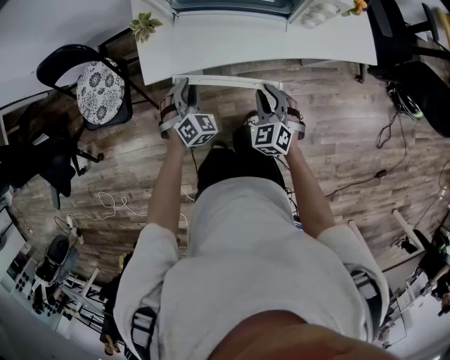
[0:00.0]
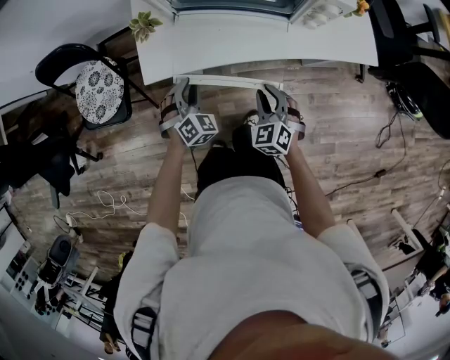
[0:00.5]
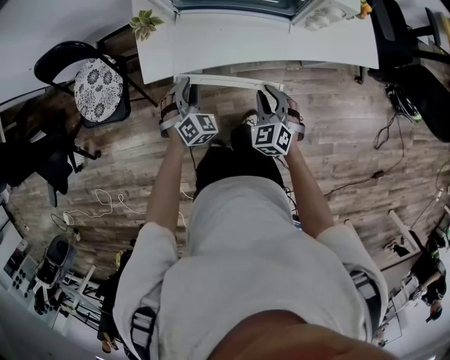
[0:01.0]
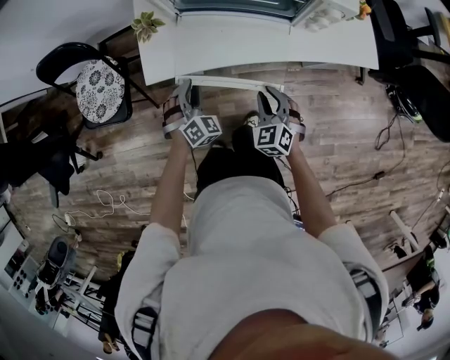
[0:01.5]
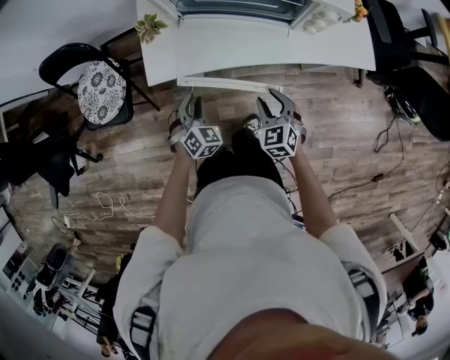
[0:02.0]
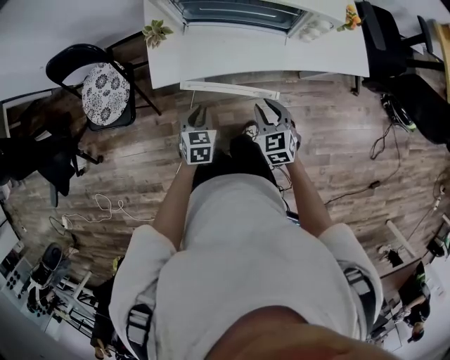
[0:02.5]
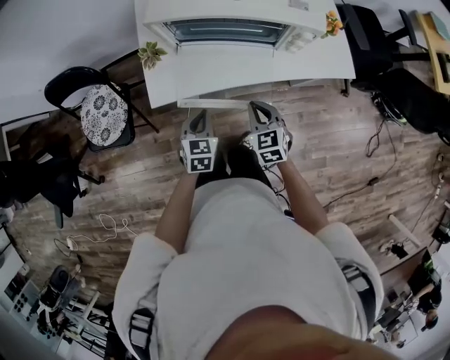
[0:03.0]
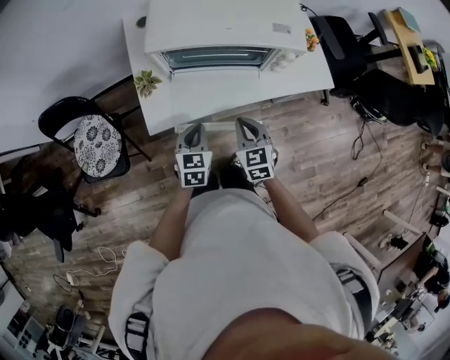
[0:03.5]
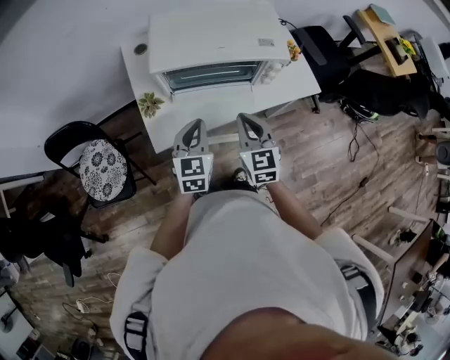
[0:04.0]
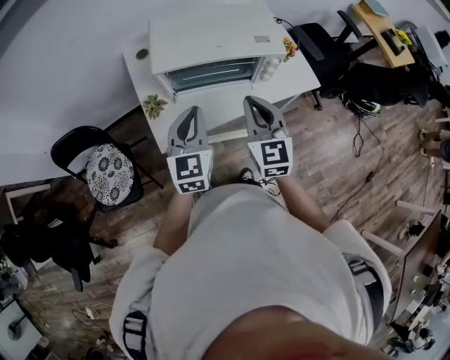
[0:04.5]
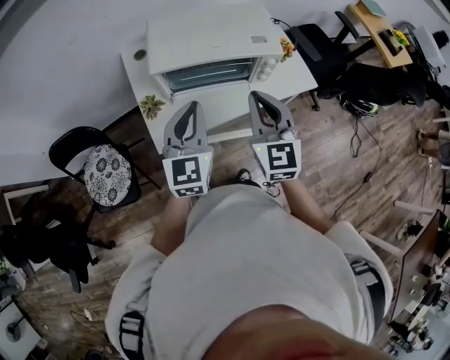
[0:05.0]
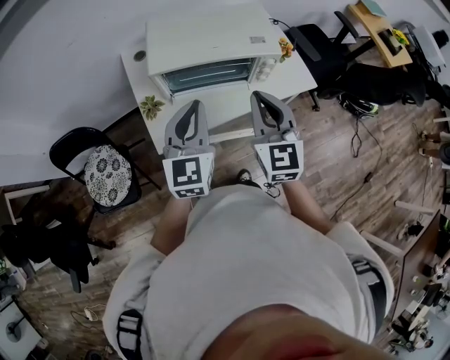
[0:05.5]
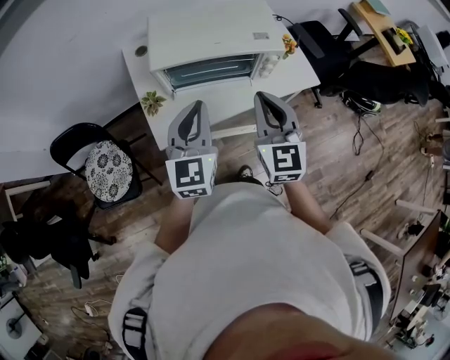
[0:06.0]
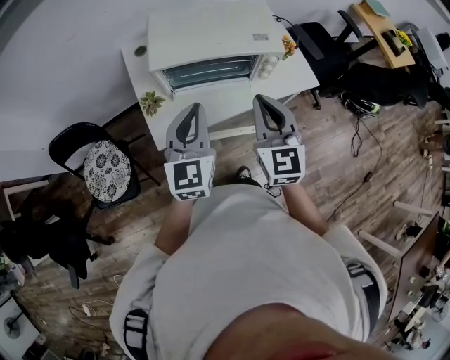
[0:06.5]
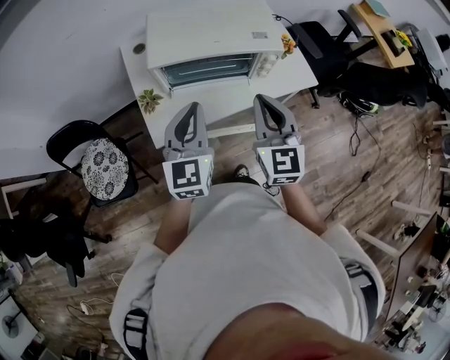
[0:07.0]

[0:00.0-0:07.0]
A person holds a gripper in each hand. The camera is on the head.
0:00.0 to 0:02.0: There are only small adjustments of the grippers.
0:02.0 to 0:03.5: Both grippers travel together upward, approximately 10 cm. The left gripper changes its angle by roughly 40 degrees, and closes up; the right gripper swivels about 20 degrees, and closes.
0:03.5 to 0:05.0: Both grippers move upward, some 25 cm. The left gripper rotates some 30 degrees, while the right gripper turns by roughly 30 degrees.
0:05.0 to 0:07.0: The grippers make only small movements.

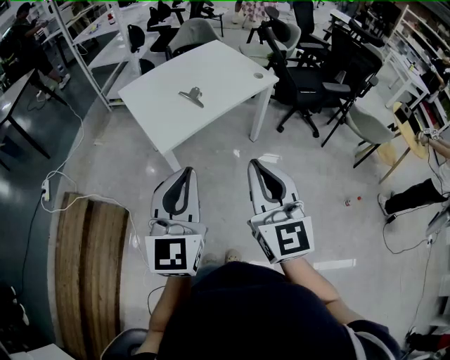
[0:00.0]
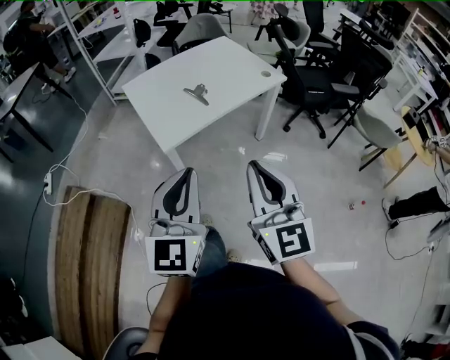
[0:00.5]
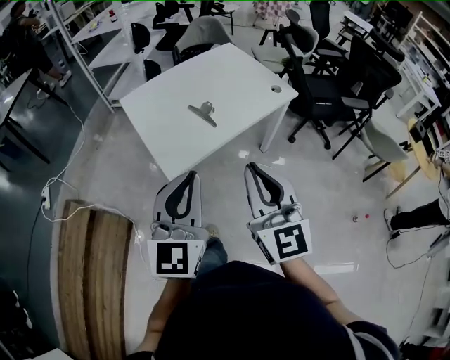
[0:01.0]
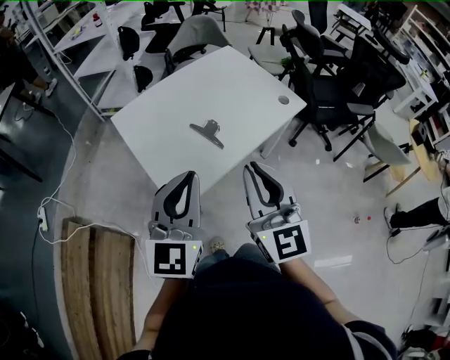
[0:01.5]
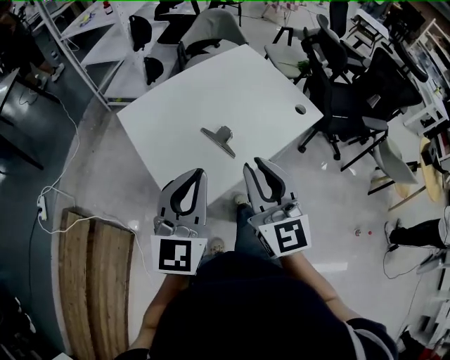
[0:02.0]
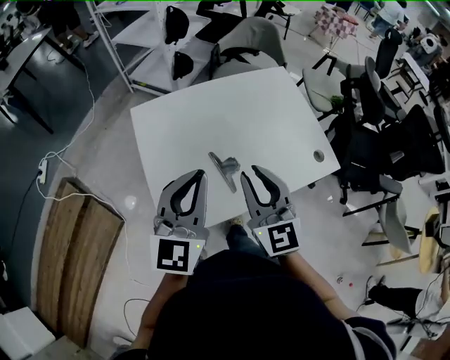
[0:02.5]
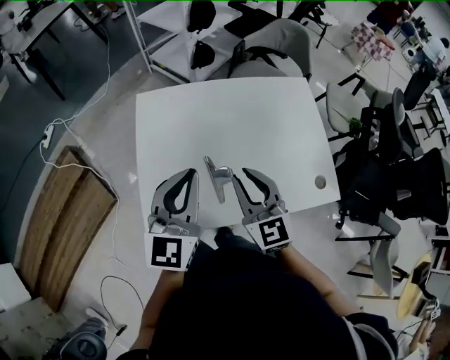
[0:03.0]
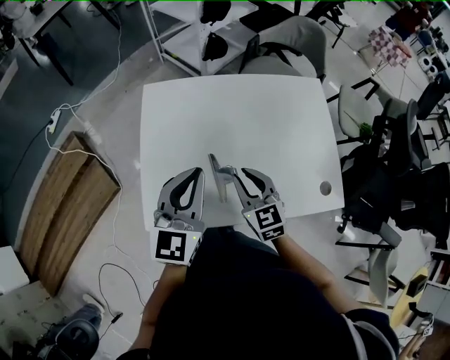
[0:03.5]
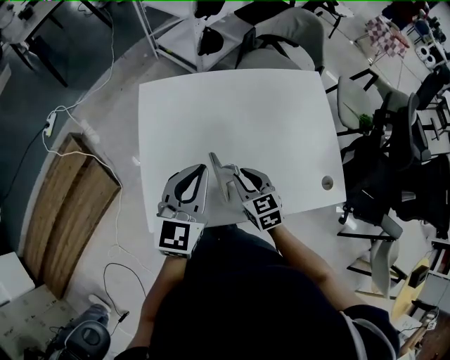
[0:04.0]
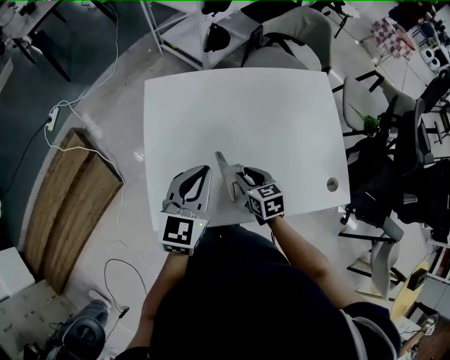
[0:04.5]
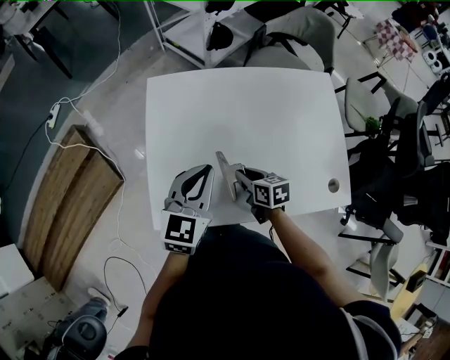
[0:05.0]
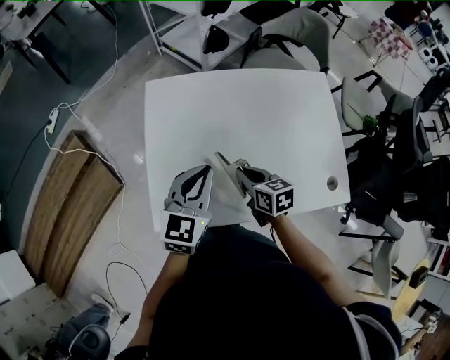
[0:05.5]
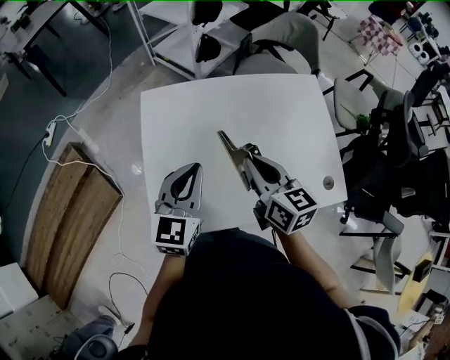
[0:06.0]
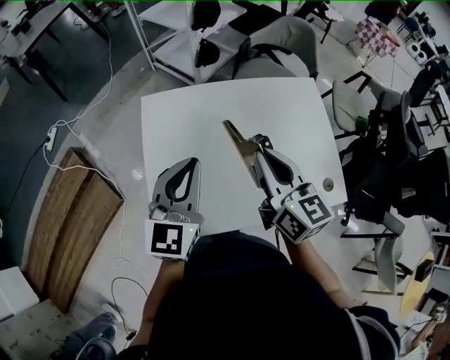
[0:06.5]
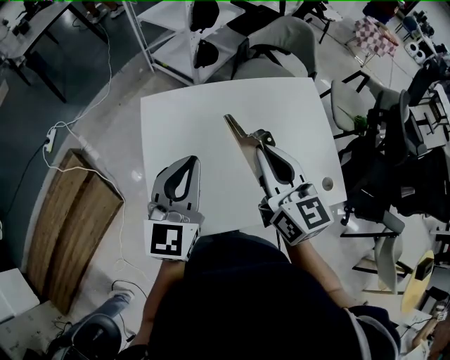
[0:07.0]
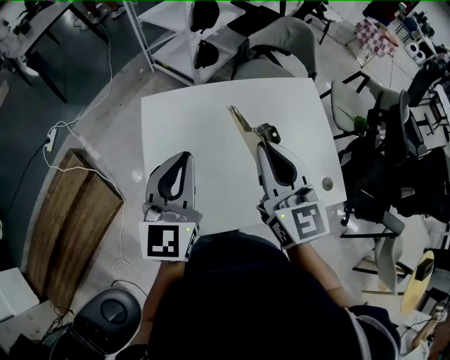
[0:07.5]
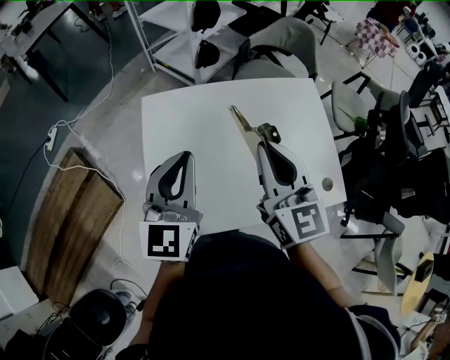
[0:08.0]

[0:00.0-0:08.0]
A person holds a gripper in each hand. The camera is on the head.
0:00.0 to 0:02.0: Both grippers travel together forward, roughly 35 cm.
0:02.0 to 0:04.0: The right gripper shifts approximately 25 cm downward, and angles its fingers downward, by roughly 30 degrees, while the left gripper shifts by about 20 cm, and rotates approximately 30 degrees.
0:04.0 to 0:06.0: The right gripper moves upward, roughly 15 cm, and swivels some 30 degrees.
0:06.0 to 0:08.0: The two grippers go approximately 10 cm upward. The right gripper changes its angle by about 30 degrees.

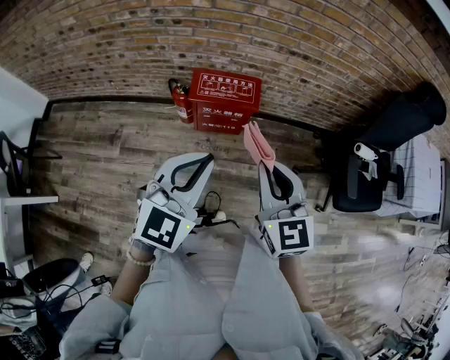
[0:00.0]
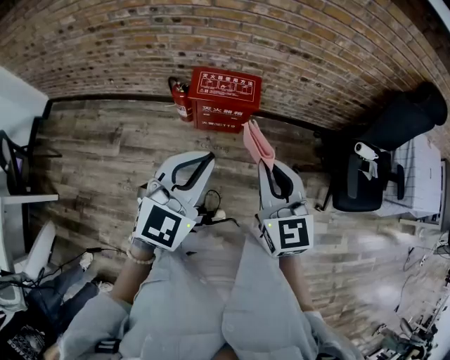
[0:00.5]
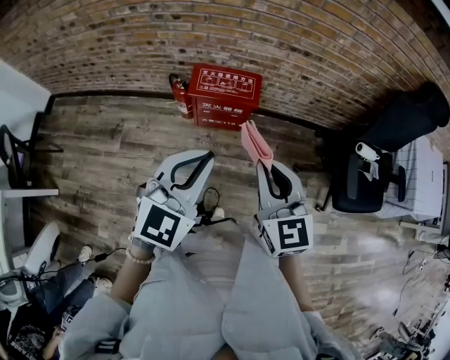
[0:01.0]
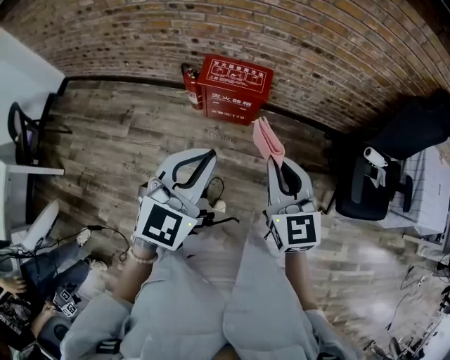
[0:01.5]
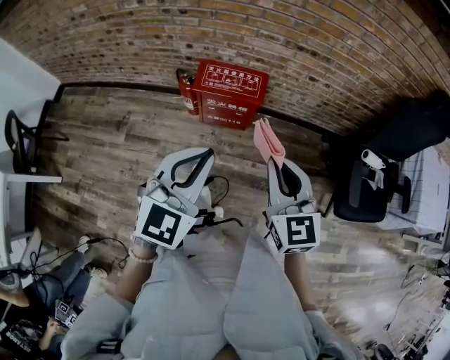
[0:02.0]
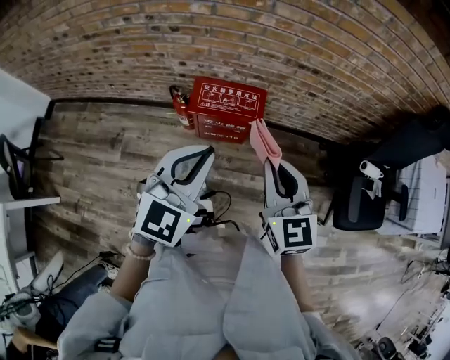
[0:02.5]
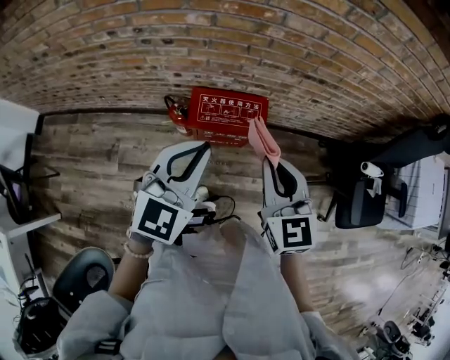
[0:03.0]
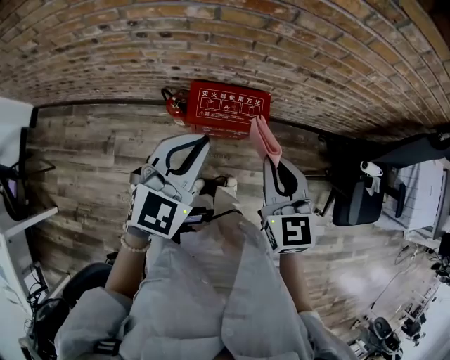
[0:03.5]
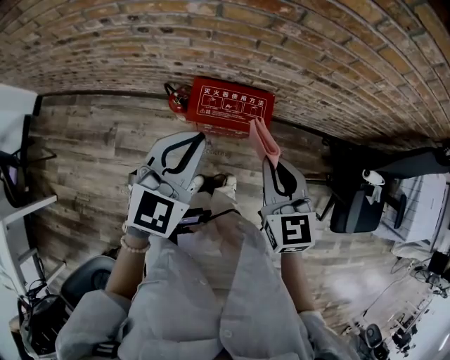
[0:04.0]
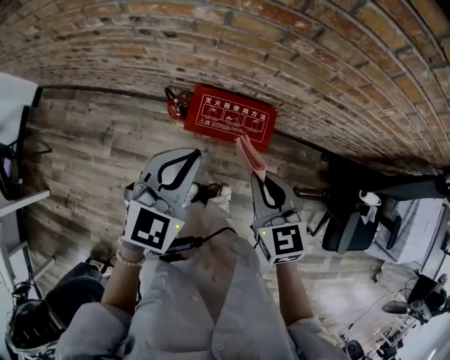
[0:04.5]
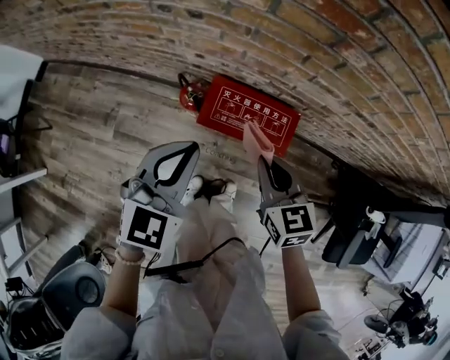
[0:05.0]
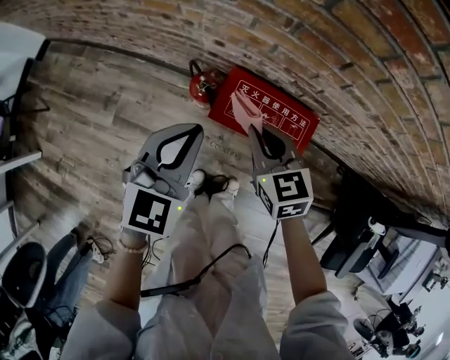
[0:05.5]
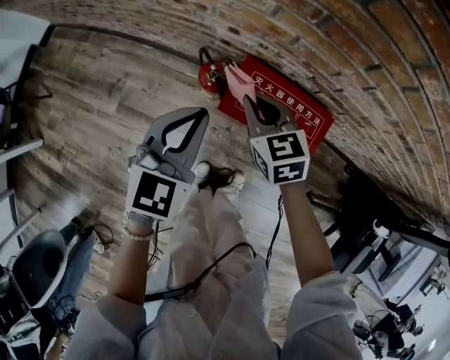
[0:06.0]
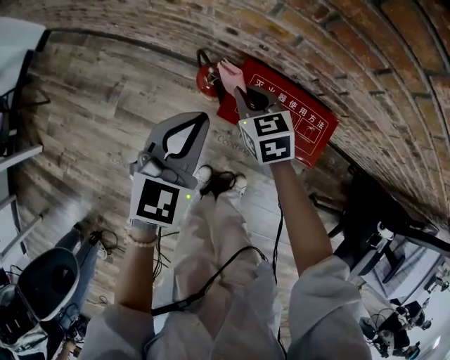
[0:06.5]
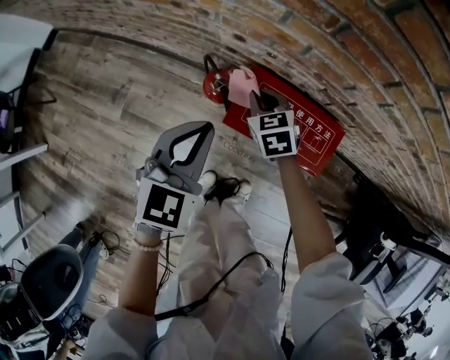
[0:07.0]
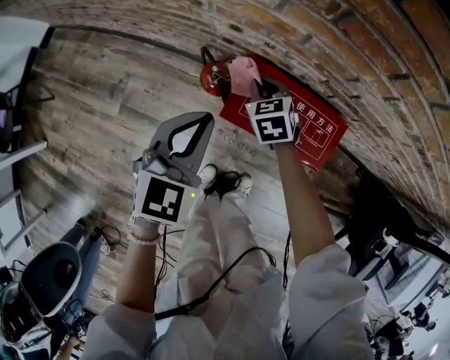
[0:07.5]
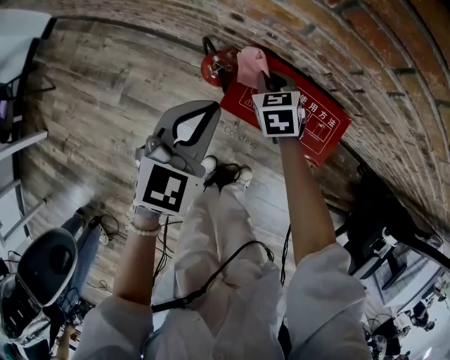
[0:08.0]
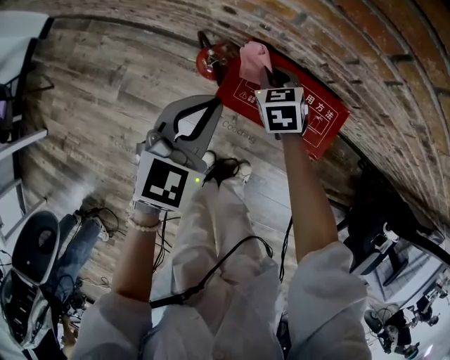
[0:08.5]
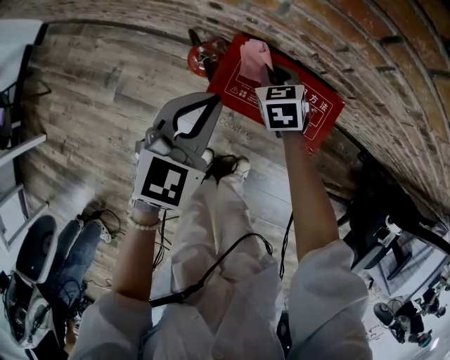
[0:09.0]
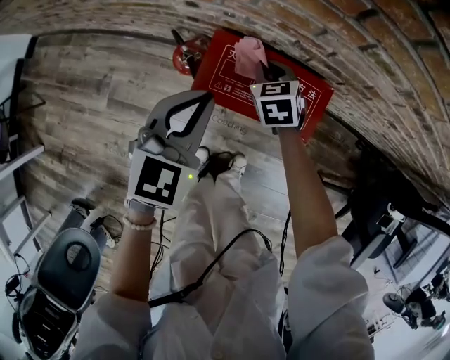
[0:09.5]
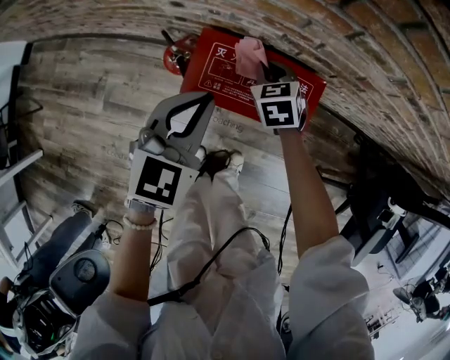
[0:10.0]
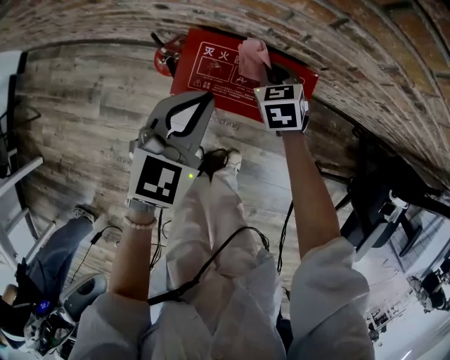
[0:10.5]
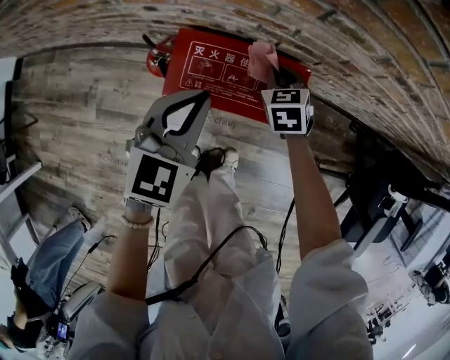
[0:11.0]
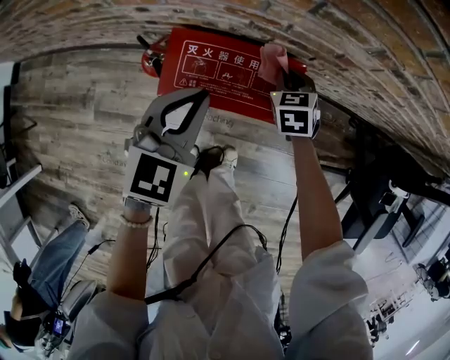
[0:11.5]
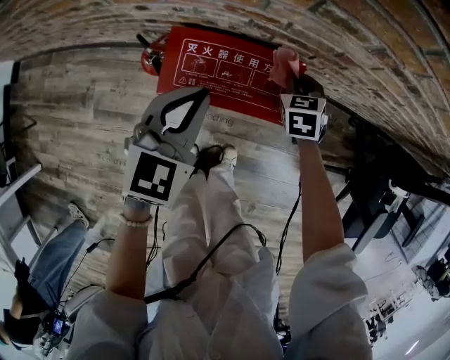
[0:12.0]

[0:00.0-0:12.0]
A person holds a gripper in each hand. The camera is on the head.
0:00.0 to 0:02.0: The right gripper shifts about 5 cm to the right.
0:02.0 to 0:04.0: Both grippers travel together forward and to the left, some 30 cm.
0:04.0 to 0:06.0: The right gripper heads downward, forward and to the left, covering some 35 cm, and changes its angle by about 30 degrees. Meanwhile the left gripper is displaced downward, to the left and forward by approximately 25 cm, and turns by approximately 20 degrees.
0:06.0 to 0:08.0: The left gripper heads downward, covering about 5 cm, while the right gripper travels downward and forward by approximately 15 cm.
0:08.0 to 0:10.0: The two grippers go some 10 cm to the right.
0:10.0 to 0:12.0: The left gripper changes place by some 5 cm. Meanwhile the right gripper is displaced to the right by some 15 cm.
